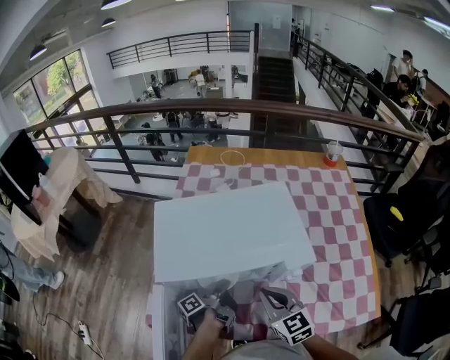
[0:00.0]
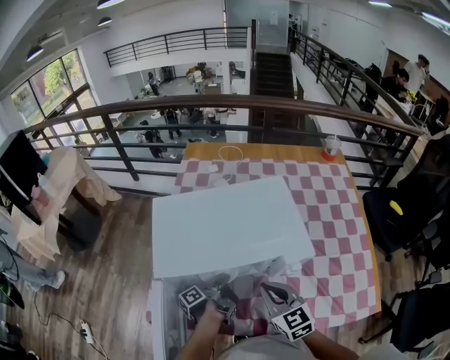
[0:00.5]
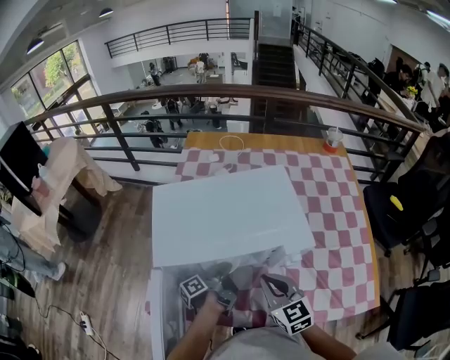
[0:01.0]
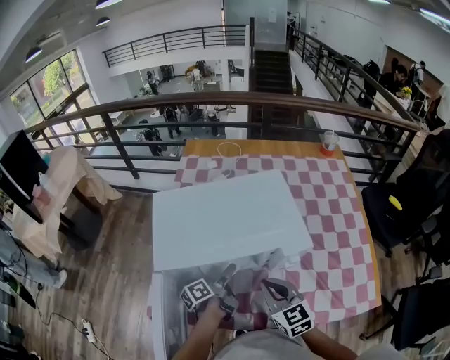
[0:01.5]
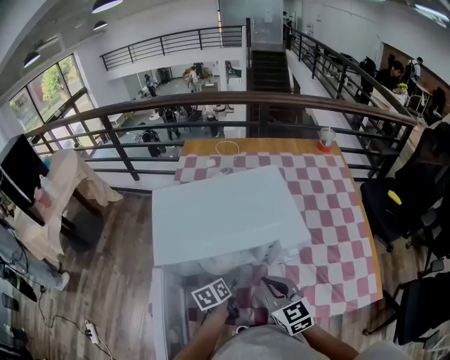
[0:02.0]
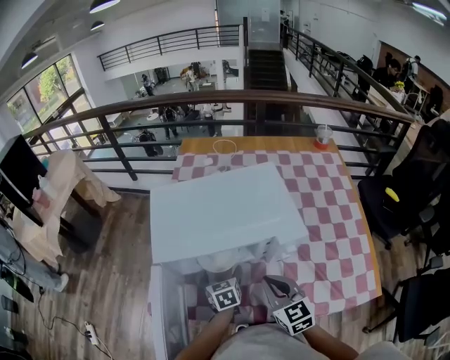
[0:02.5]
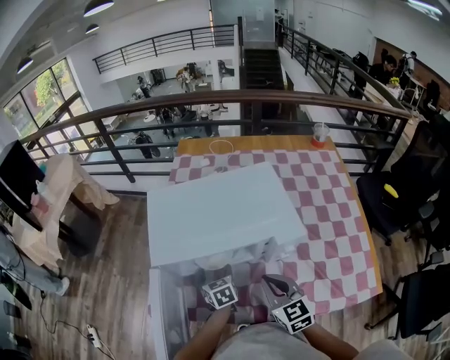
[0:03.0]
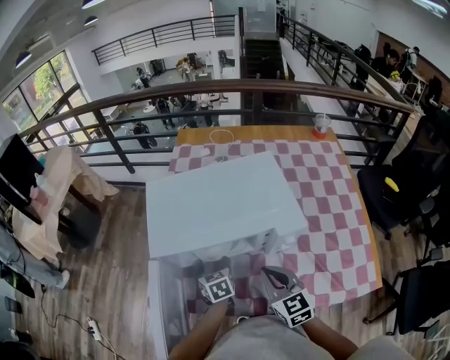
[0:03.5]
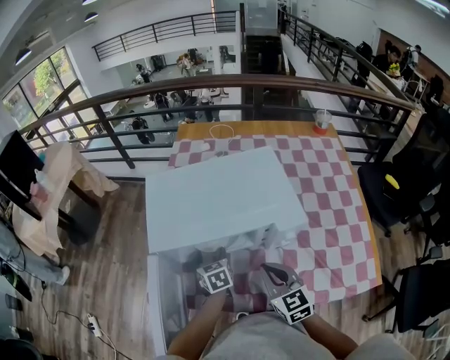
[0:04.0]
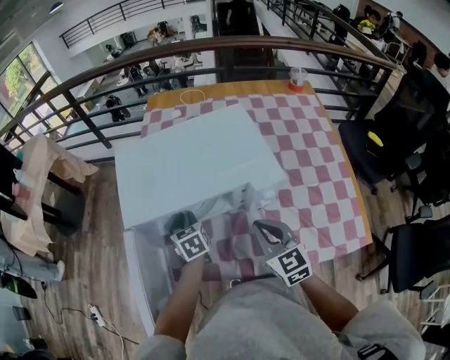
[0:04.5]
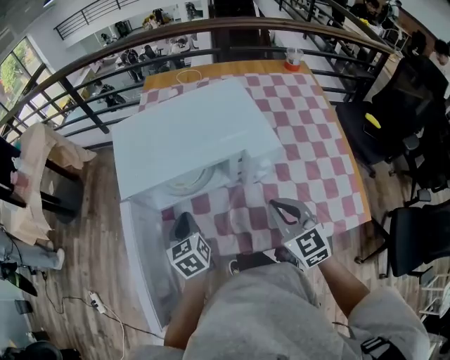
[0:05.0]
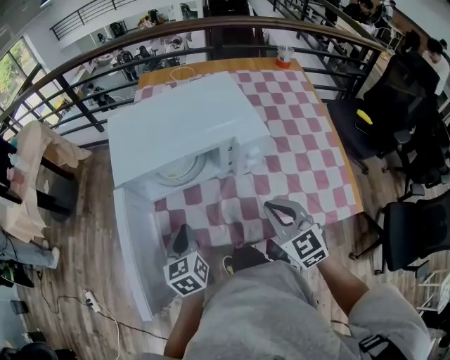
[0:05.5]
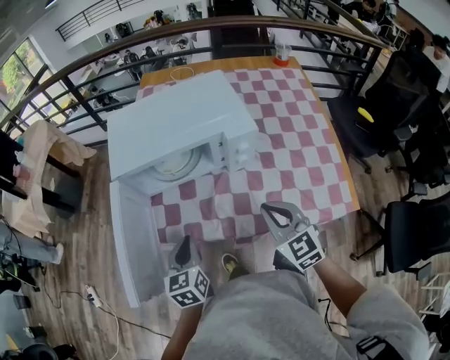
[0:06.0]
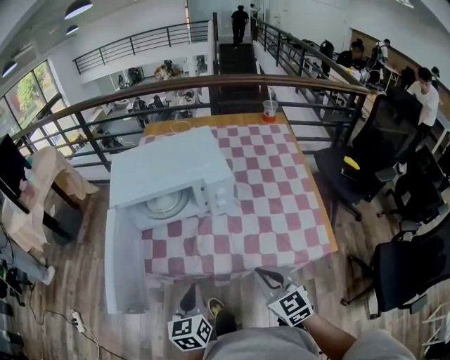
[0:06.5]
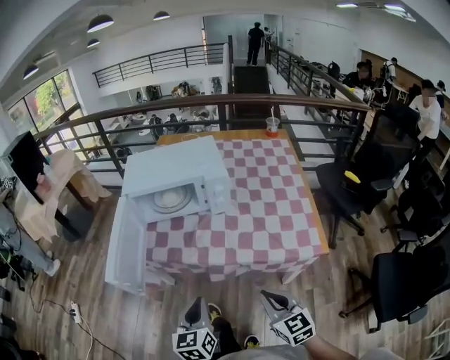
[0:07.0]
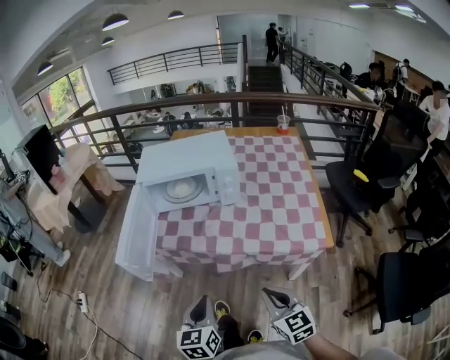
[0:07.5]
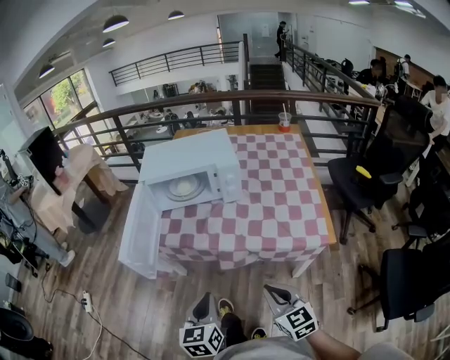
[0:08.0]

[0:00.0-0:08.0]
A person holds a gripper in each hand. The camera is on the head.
0:04.0 to 0:06.0: The right gripper moves approximately 15 cm.
0:06.0 to 0:08.0: The right gripper changes place by about 30 cm.

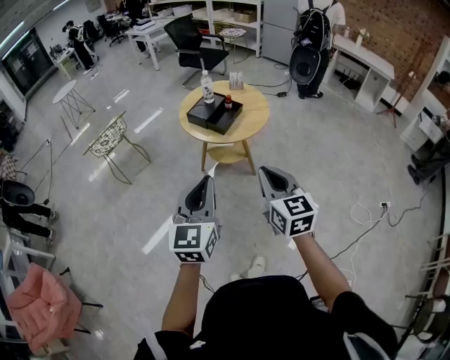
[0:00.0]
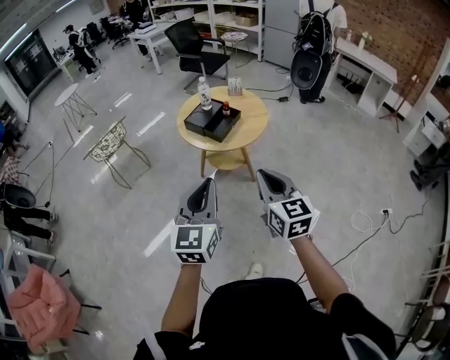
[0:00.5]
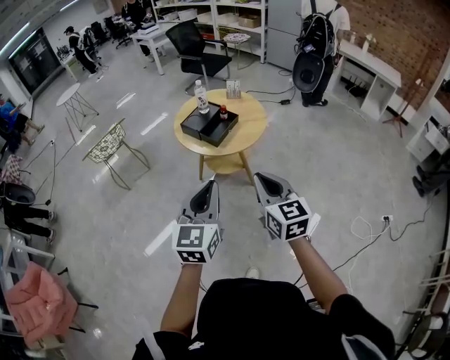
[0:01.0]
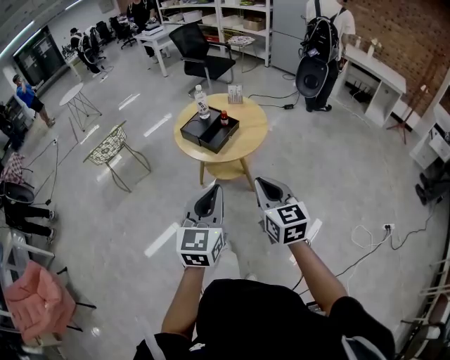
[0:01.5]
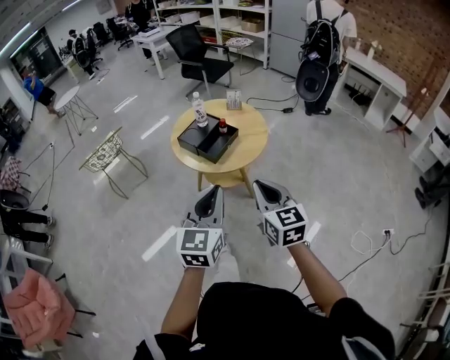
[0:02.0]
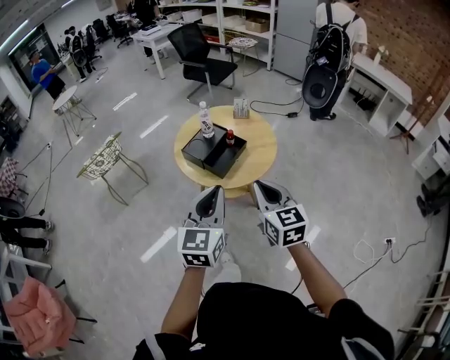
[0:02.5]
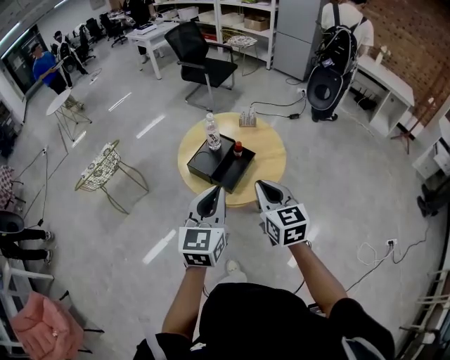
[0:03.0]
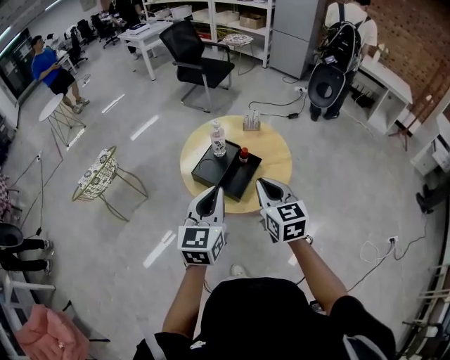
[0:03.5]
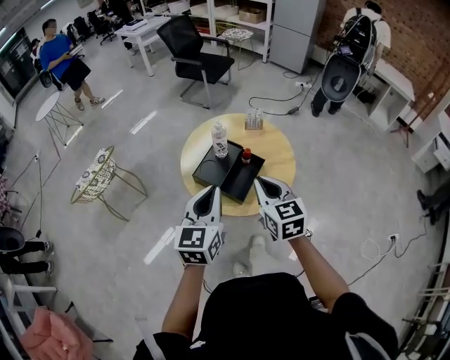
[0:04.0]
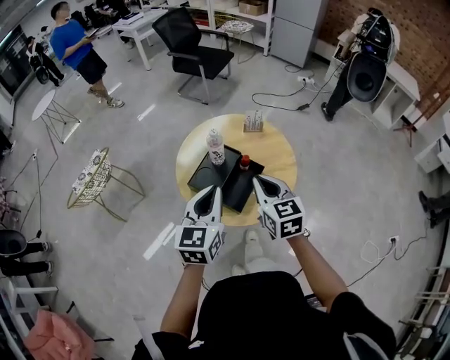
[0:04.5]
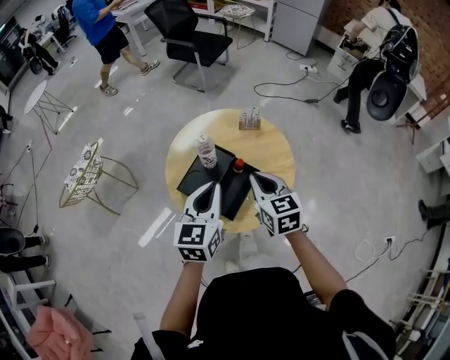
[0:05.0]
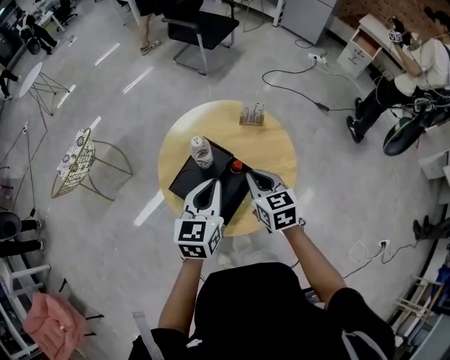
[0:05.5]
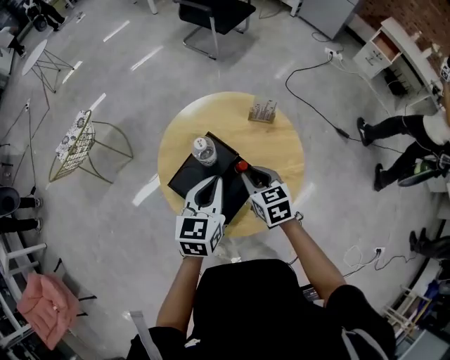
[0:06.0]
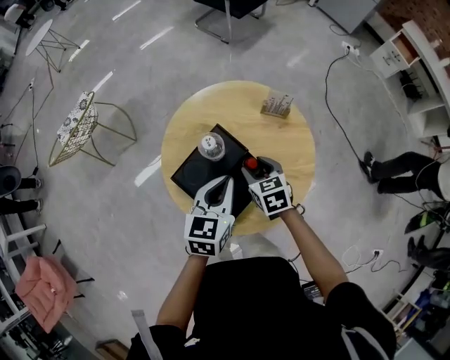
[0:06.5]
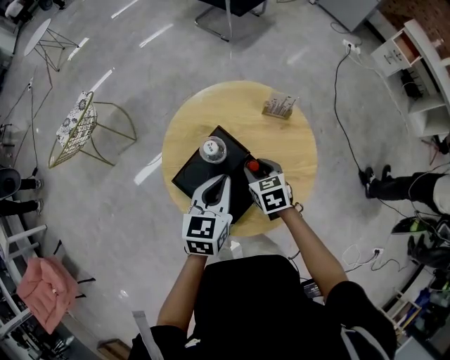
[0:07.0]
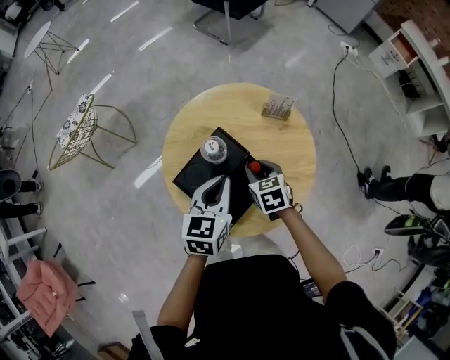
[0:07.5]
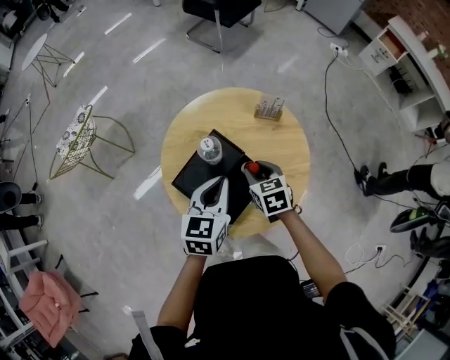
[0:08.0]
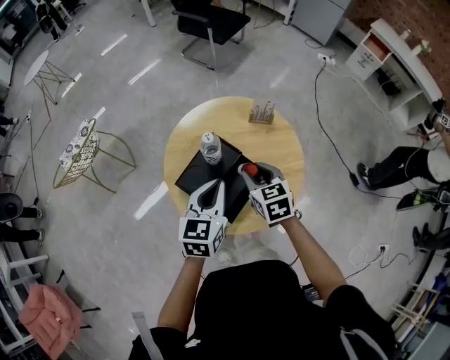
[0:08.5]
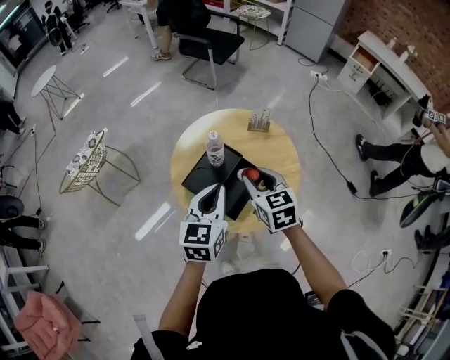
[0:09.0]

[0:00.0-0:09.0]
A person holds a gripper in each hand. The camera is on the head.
0:00.0 to 0:02.0: The two grippers go about 20 cm forward and to the right.
0:02.0 to 0:04.5: Both grippers move forward, about 35 cm.
0:04.5 to 0:07.0: The left gripper goes roughly 25 cm forward and downward, and turns by approximately 20 degrees. The right gripper heads downward and forward, covering about 30 cm, tilts its fingers approximately 30 degrees downward, and opens.
0:07.0 to 0:09.0: Both grippers travel together upward and backward, some 20 cm. The right gripper rotates about 20 degrees.

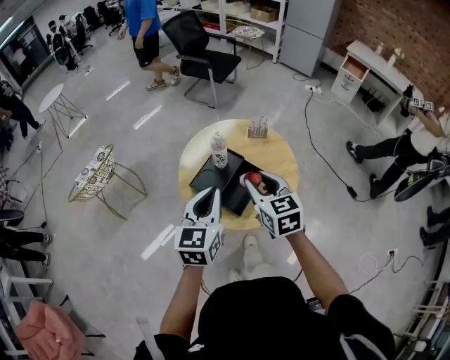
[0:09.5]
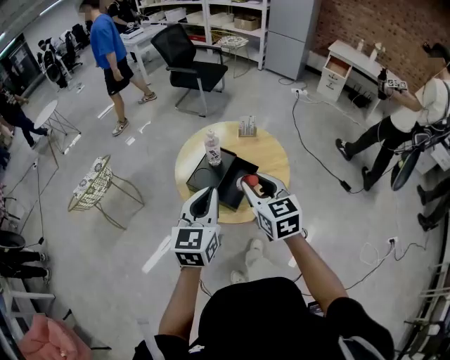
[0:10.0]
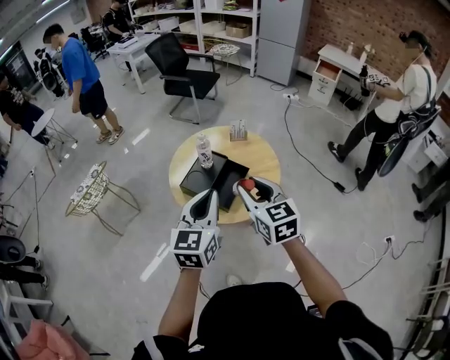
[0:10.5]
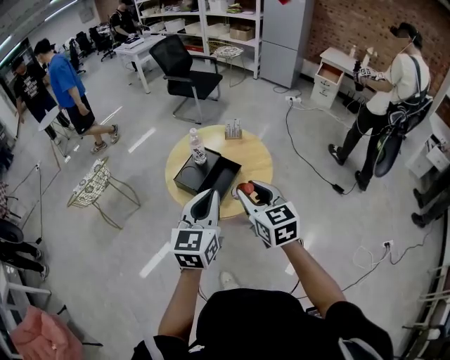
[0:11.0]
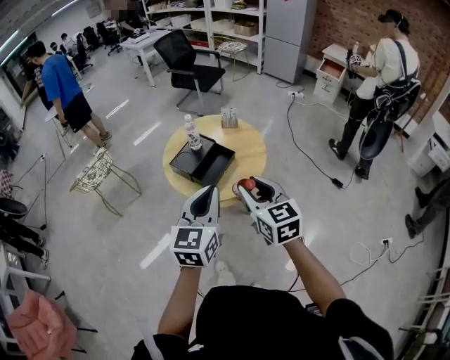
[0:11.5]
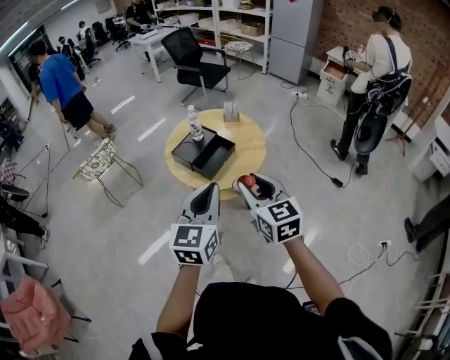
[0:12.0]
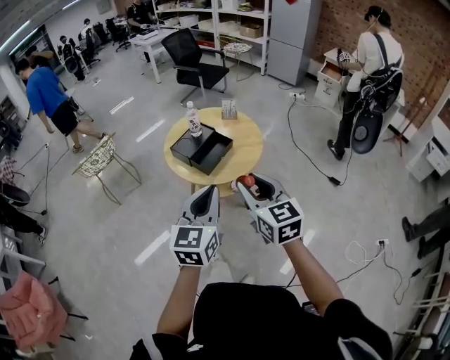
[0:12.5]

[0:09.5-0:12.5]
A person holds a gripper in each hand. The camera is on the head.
0:09.5 to 0:11.0: The left gripper heads backward, to the right and upward, covering about 15 cm, while the right gripper shifts roughly 15 cm backward and to the right.
0:11.0 to 0:12.5: Both grippers move backward, about 20 cm.

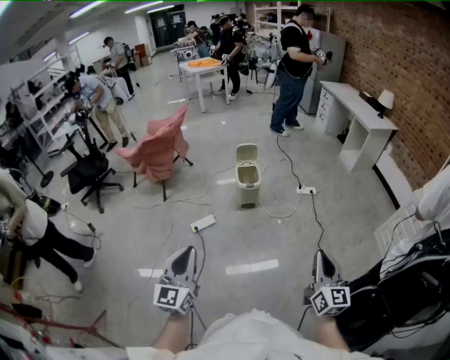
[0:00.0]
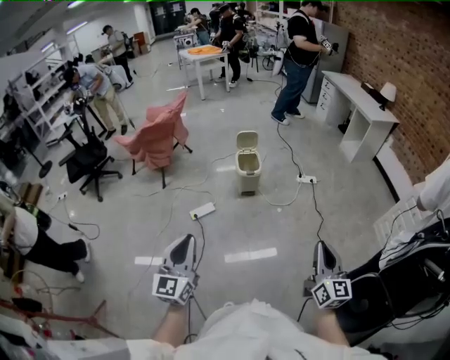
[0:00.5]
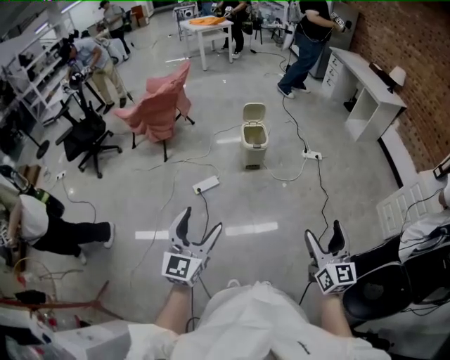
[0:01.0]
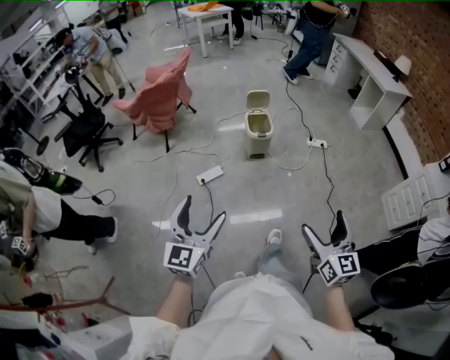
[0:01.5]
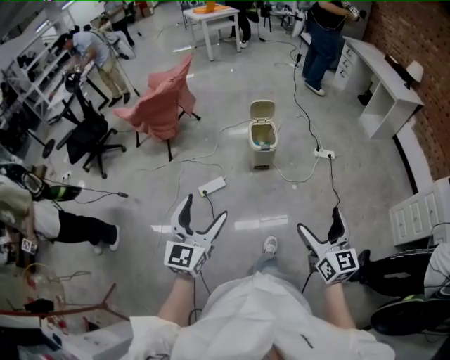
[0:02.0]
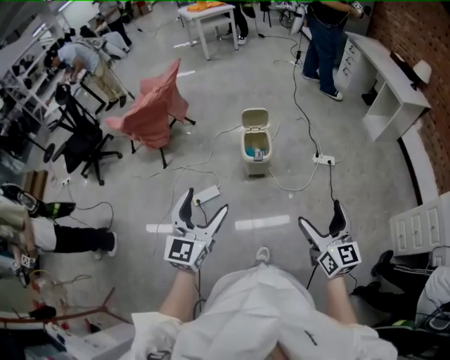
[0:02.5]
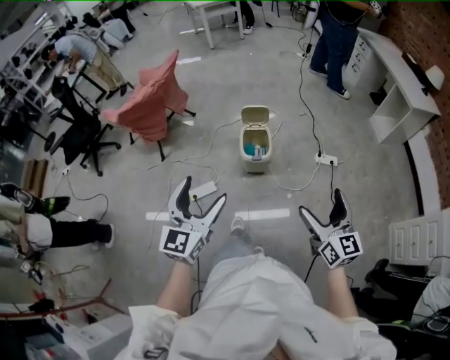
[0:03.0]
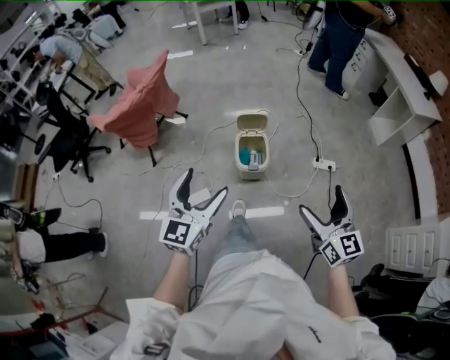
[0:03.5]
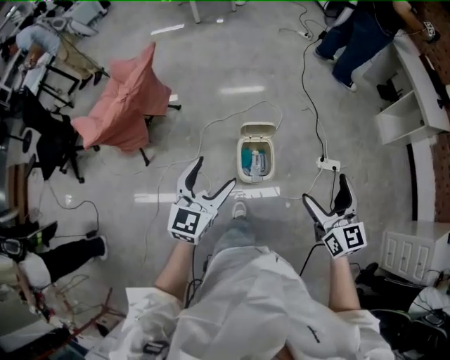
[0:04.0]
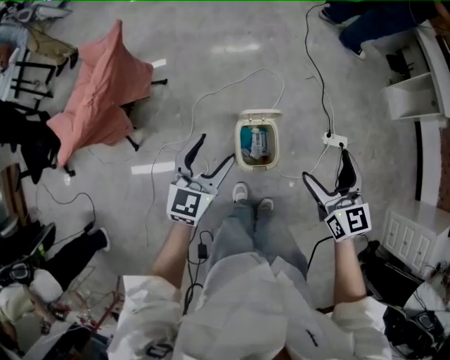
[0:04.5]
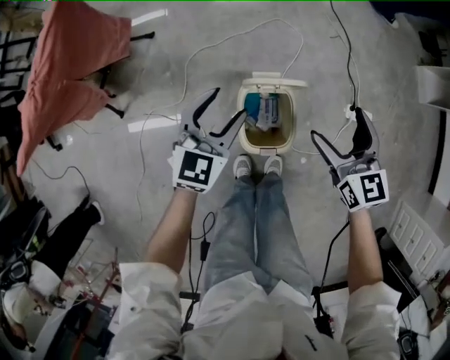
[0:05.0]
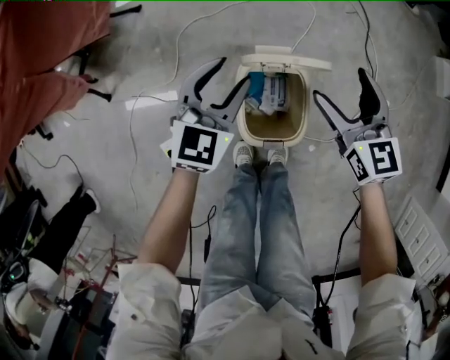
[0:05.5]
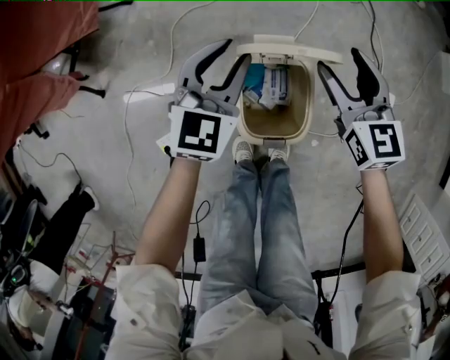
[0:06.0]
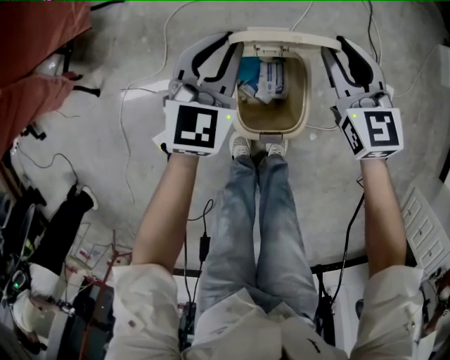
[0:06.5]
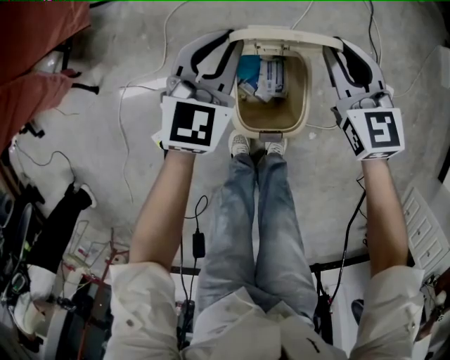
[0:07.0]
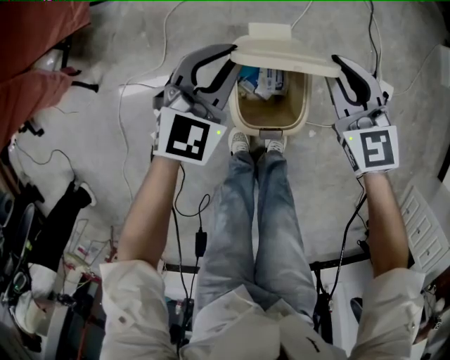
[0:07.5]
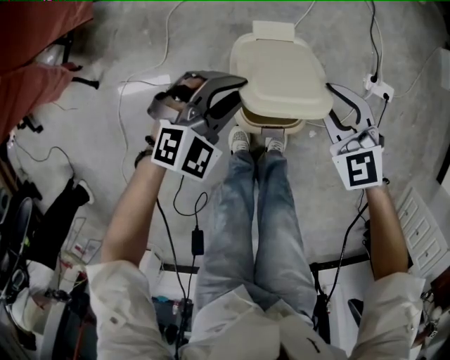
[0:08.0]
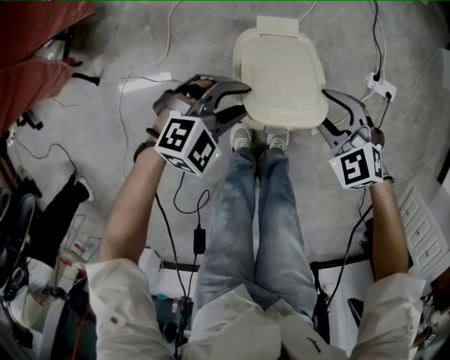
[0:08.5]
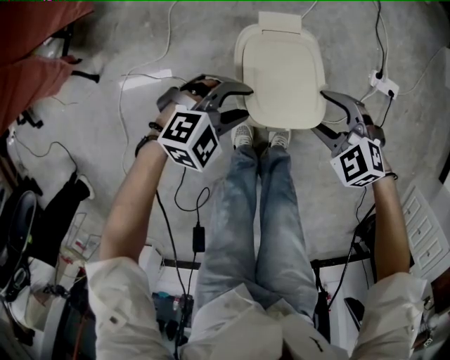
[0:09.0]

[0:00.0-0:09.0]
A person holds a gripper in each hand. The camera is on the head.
0:00.0 to 0:02.0: The right gripper goes roughly 20 cm forward and to the left, and opens, while the left gripper moves forward, roughly 20 cm, and opens up.
0:02.0 to 0:04.5: Both grippers are carried forward, some 70 cm.
0:04.5 to 0:07.0: The two grippers go some 40 cm downward and forward. The right gripper closes its fingers; the left gripper closes.
0:07.0 to 0:09.0: The left gripper changes place by some 20 cm, changes its angle by about 60 degrees, and opens up; the right gripper moves some 20 cm, rotates about 50 degrees, and opens its fingers.
